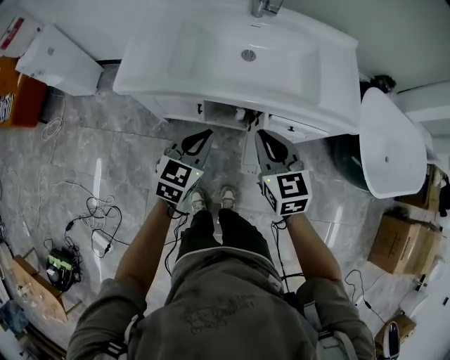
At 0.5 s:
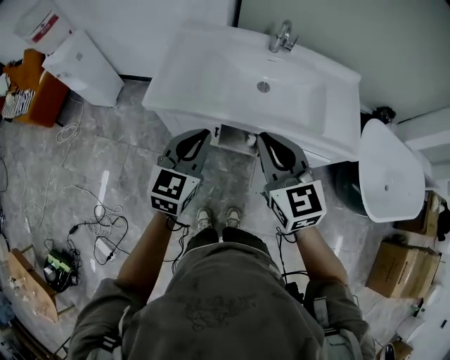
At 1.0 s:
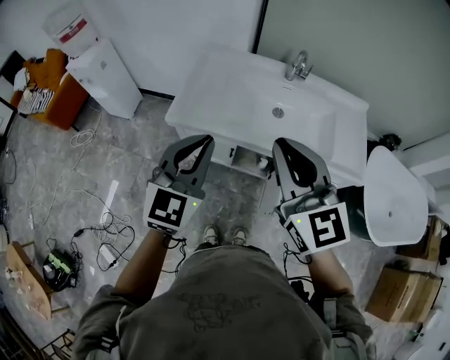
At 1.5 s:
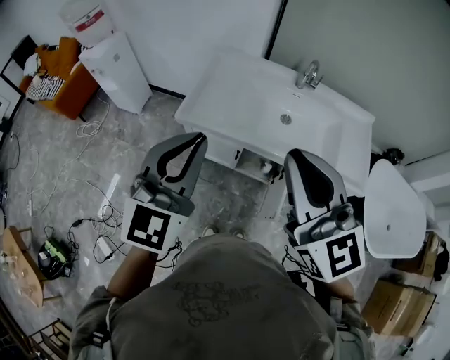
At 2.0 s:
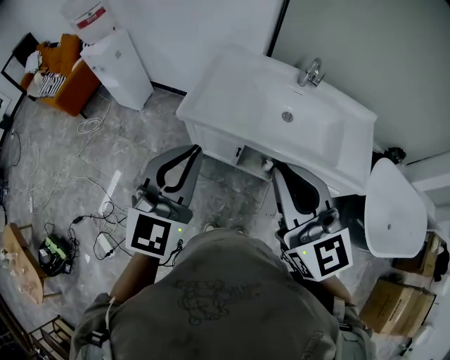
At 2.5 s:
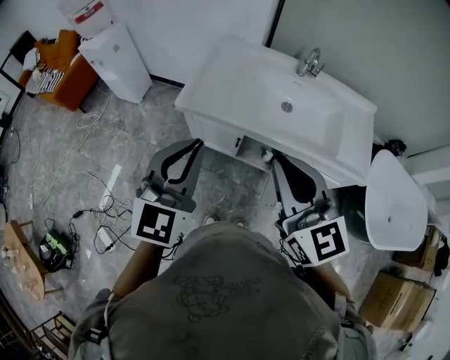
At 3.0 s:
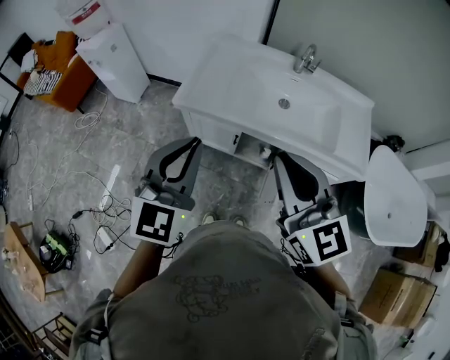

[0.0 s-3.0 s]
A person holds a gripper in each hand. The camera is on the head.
0.0 to 1.5 s: The right gripper travels upward by roughly 30 cm, and swivels roughly 40 degrees. The left gripper shifts some 35 cm upward and to the left, and turns by about 30 degrees.
1.5 to 3.0 s: Both grippers travel together downward, about 5 cm.

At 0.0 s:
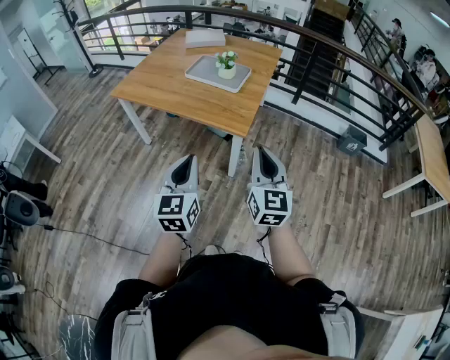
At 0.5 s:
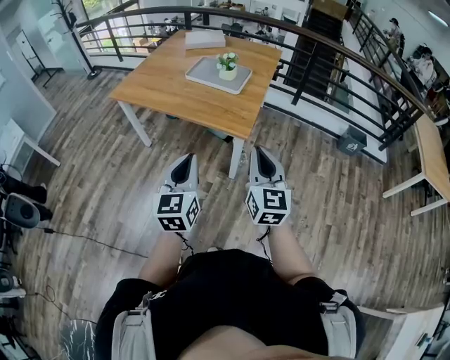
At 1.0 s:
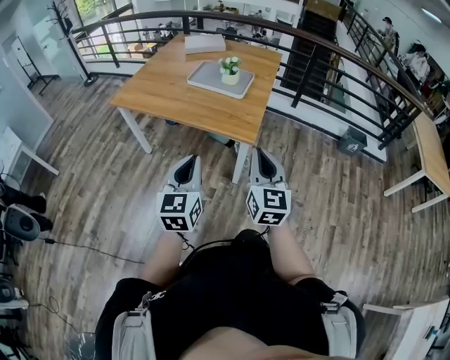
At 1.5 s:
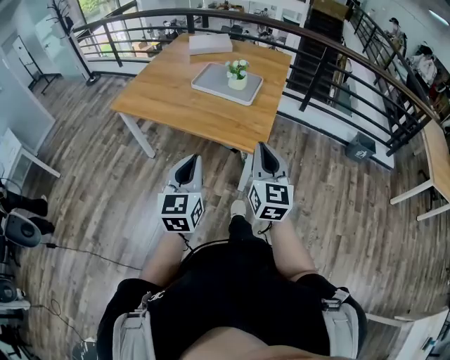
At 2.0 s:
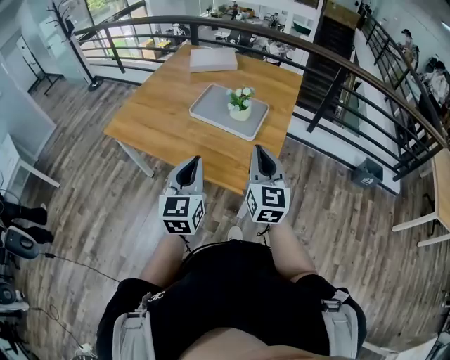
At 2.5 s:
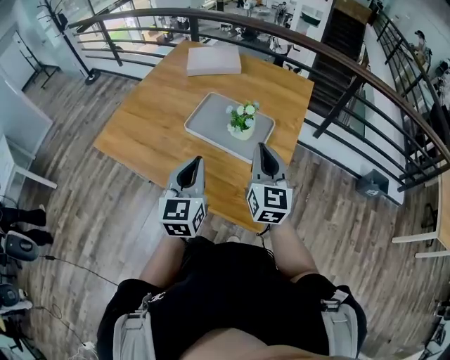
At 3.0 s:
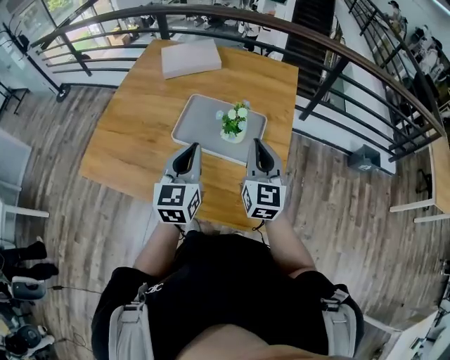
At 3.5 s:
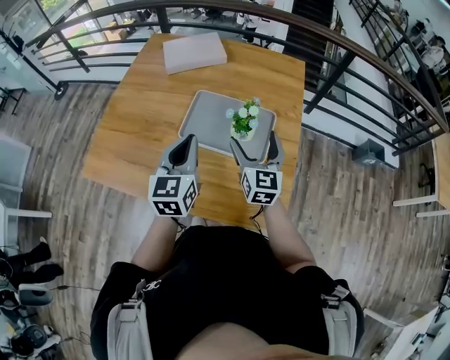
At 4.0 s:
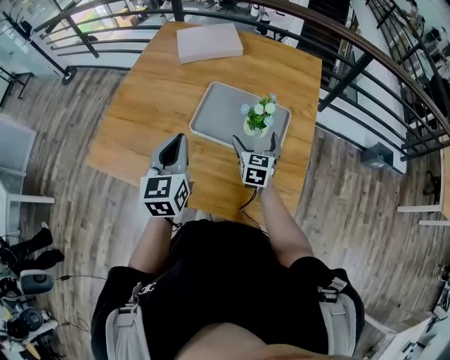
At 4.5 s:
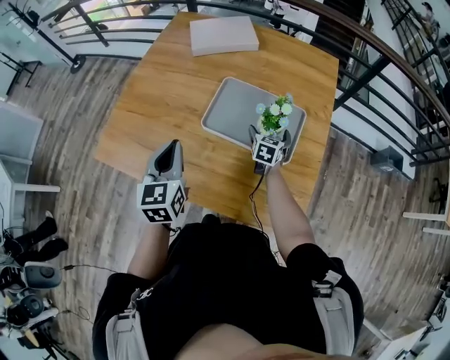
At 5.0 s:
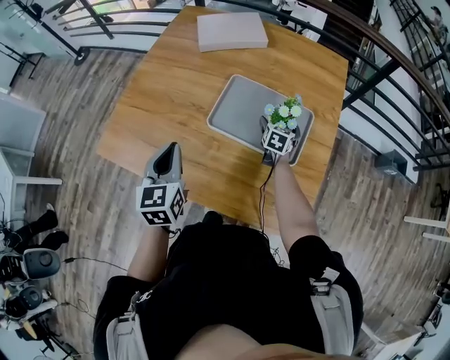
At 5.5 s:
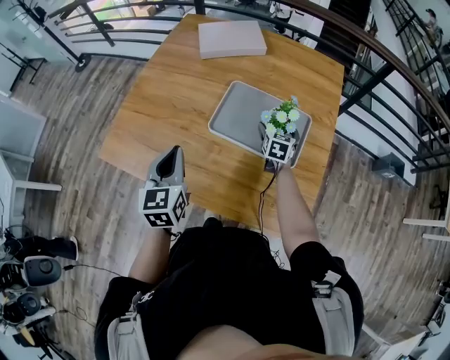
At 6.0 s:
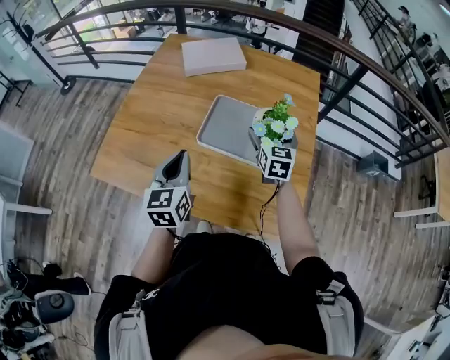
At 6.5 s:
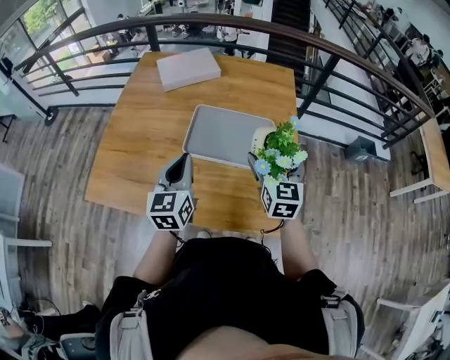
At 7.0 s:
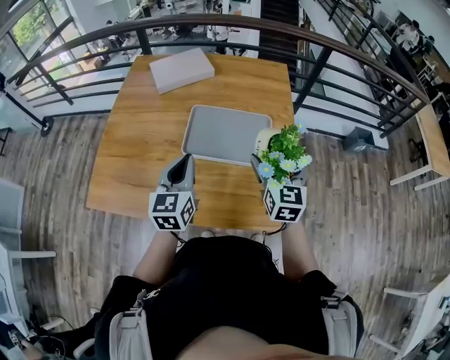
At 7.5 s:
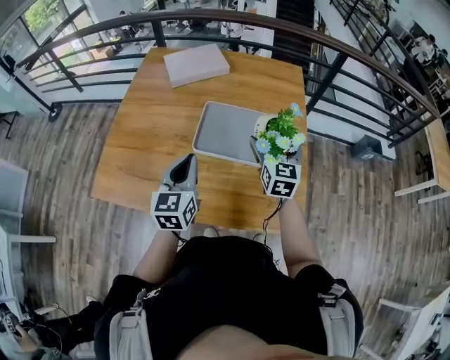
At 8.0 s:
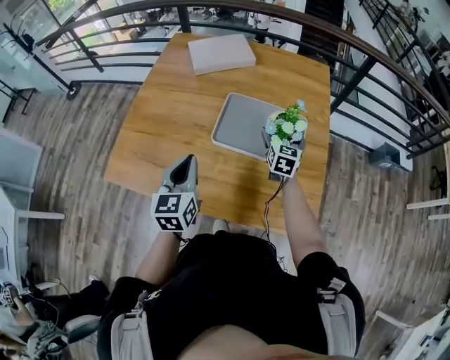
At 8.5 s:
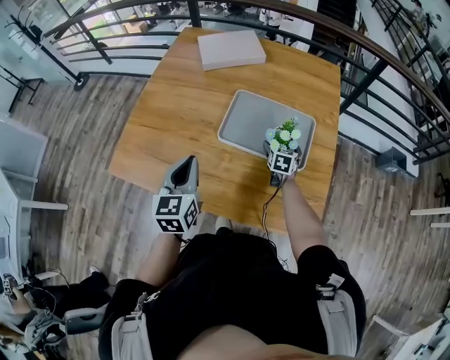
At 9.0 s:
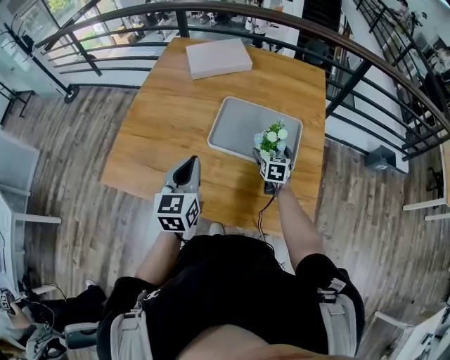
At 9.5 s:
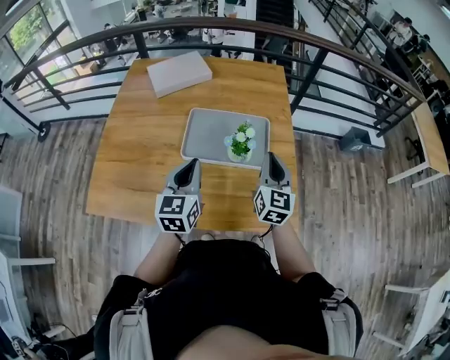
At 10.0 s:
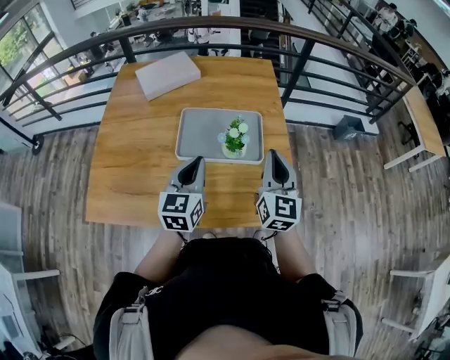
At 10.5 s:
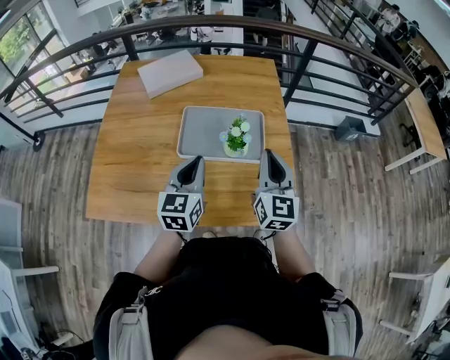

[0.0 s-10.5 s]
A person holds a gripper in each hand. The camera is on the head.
0.0 to 2.0 s: The two grippers go about 35 cm forward.
2.0 to 4.0 s: The right gripper is displaced forward and downward by approximately 40 cm, changes its angle by approximately 30 degrees, and opens. The left gripper is displaced forward and to the left by some 35 cm.
4.0 to 6.5 s: The left gripper travels to the left and back again, some 5 cm each way. The right gripper is displaced upward and backward by approximately 20 cm.
6.5 to 8.5 s: The right gripper travels downward and forward by approximately 30 cm, and swivels approximately 30 degrees; the left gripper travels to the left by about 10 cm.
8.5 to 10.5 s: The left gripper goes about 10 cm to the right, and changes its angle by some 20 degrees. Meanwhile the right gripper heads upward and backward, covering roughly 35 cm, angles its fingers upward, by some 40 degrees, and closes up.

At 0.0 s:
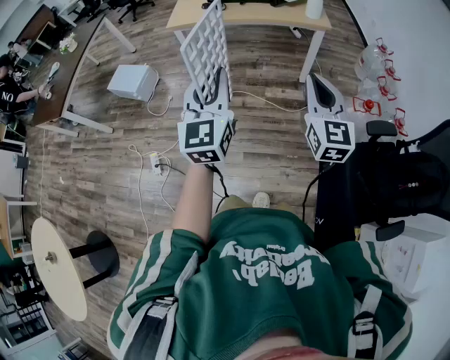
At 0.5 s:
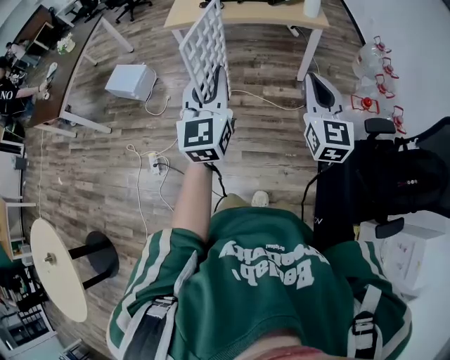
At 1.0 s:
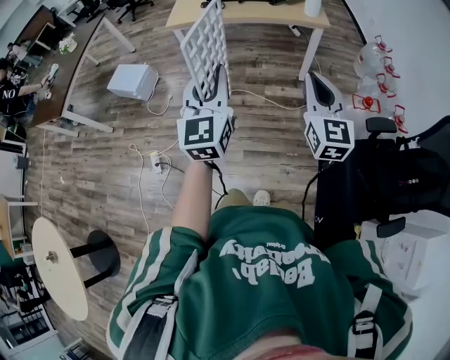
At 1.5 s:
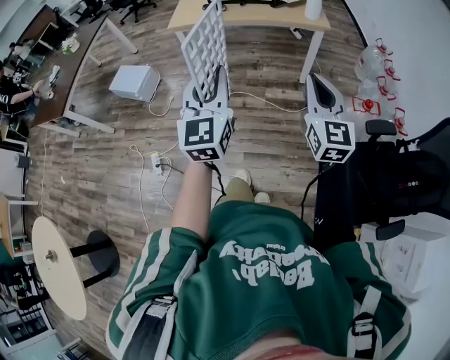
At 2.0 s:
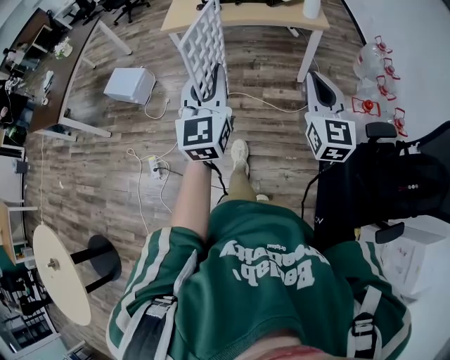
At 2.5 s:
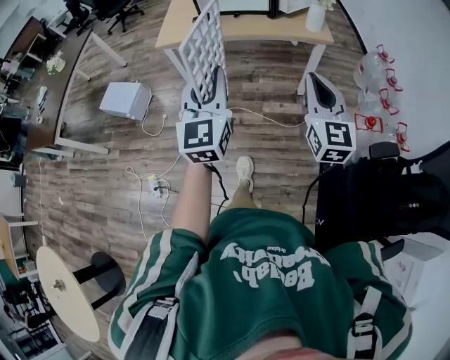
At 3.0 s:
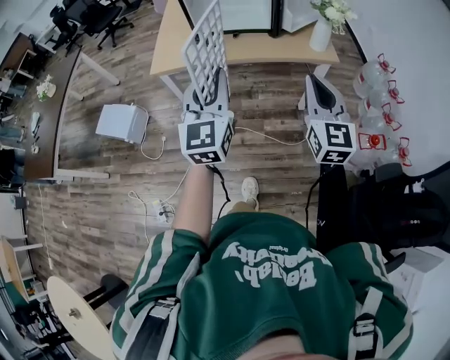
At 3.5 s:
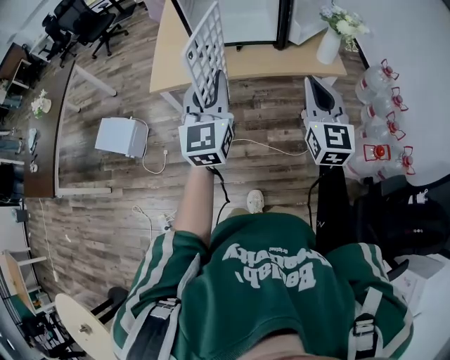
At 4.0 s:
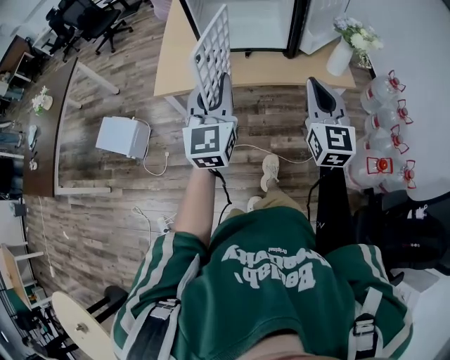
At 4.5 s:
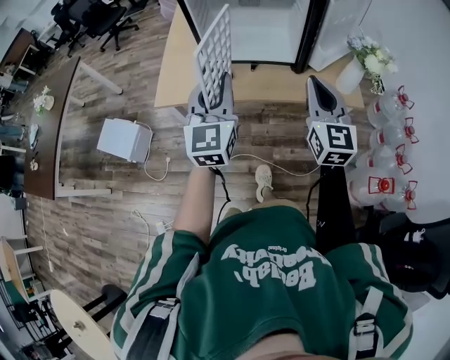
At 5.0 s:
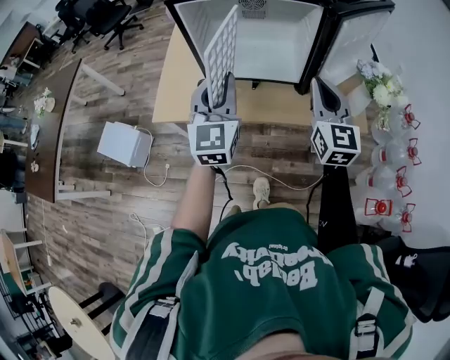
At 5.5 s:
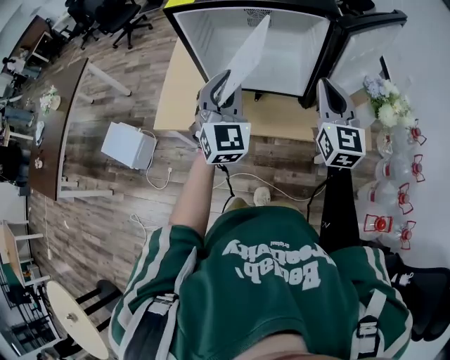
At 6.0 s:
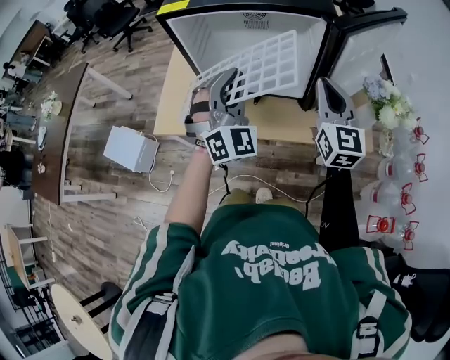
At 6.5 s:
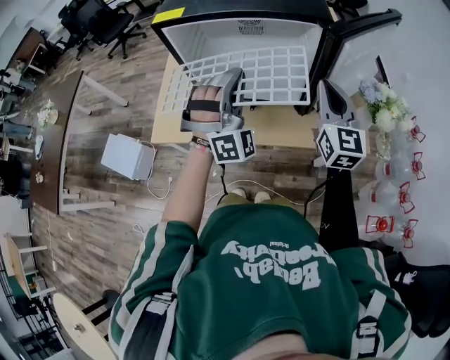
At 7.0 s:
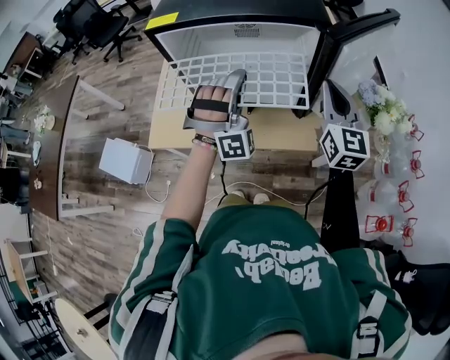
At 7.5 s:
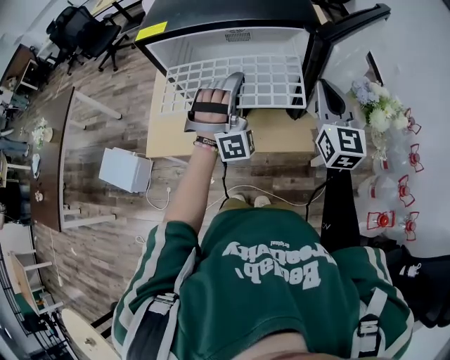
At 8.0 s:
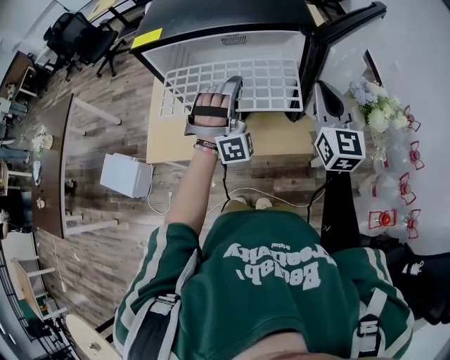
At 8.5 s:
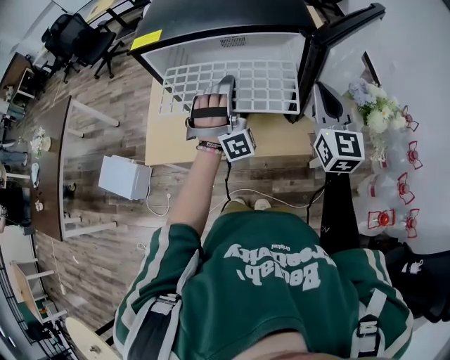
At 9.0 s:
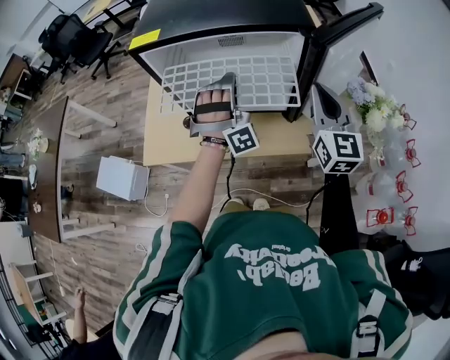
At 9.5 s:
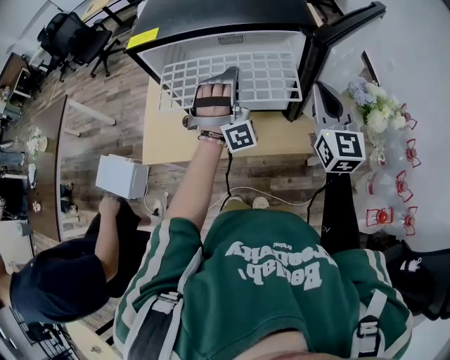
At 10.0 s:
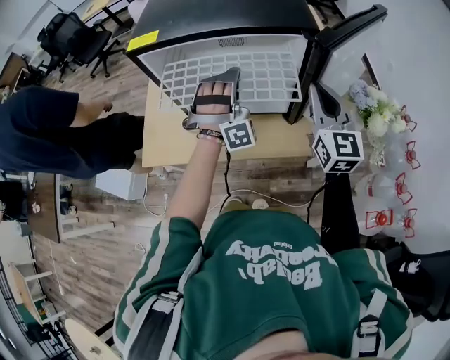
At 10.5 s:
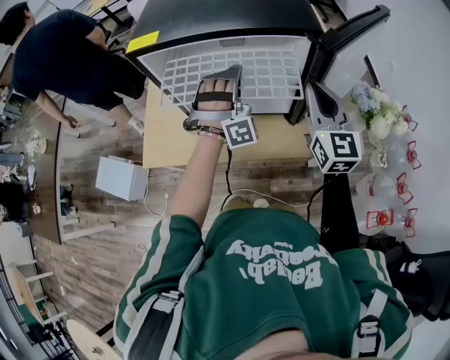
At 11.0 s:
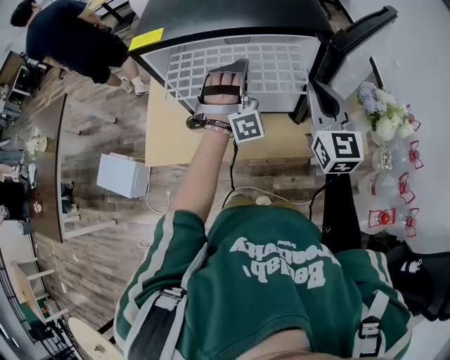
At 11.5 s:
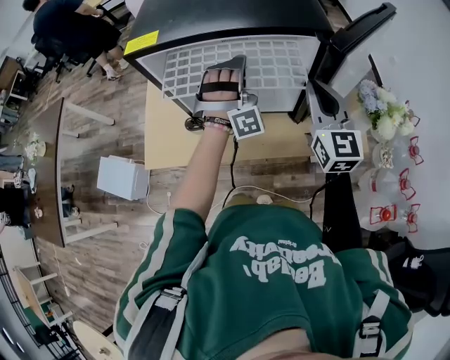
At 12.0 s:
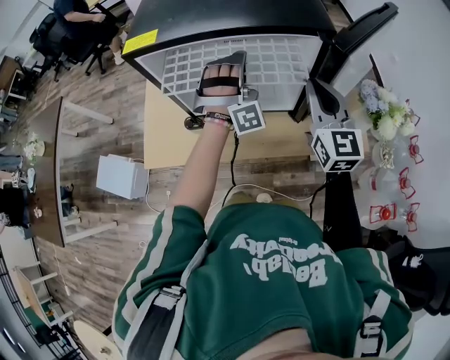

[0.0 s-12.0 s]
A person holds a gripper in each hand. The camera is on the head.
0.0 to 2.0 s: There are only small adjustments of the grippers.
2.0 to 4.0 s: The pair of grippers is taken forward, about 40 cm.
4.0 to 6.0 s: Both grippers move forward, roughly 25 cm. The left gripper rolls clockwise, seen from behind, by about 50 degrees.
6.0 to 8.0 s: The right gripper ends up approximately 5 cm from where it was. Meanwhile the left gripper goes roughly 10 cm forward and to the right, and swivels approximately 30 degrees.
8.0 to 10.0 s: The grippers stay close to where they were, moving slightly.
10.0 to 12.0 s: The left gripper is displaced forward by roughly 5 cm.

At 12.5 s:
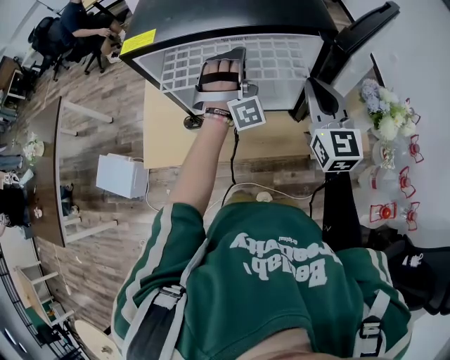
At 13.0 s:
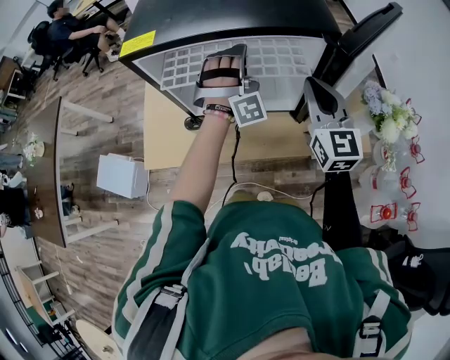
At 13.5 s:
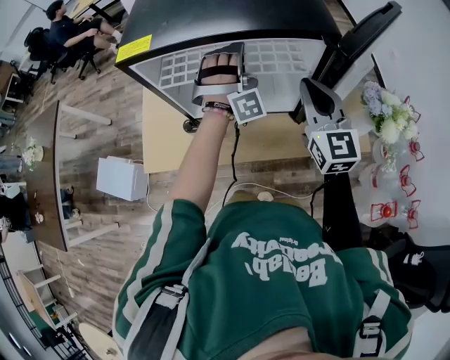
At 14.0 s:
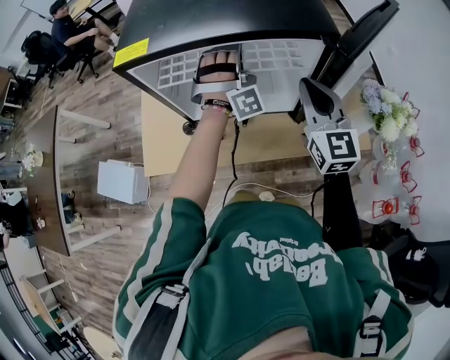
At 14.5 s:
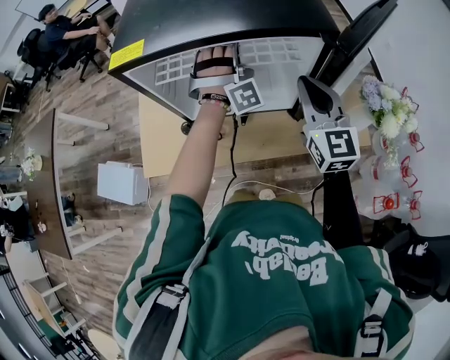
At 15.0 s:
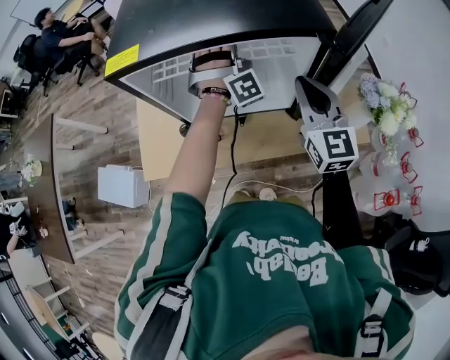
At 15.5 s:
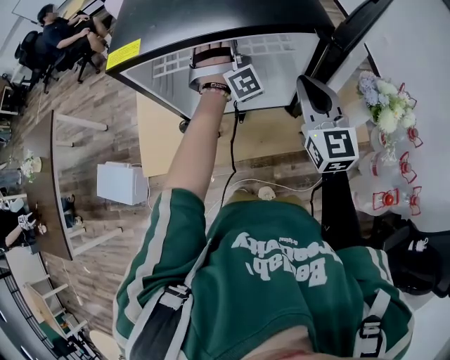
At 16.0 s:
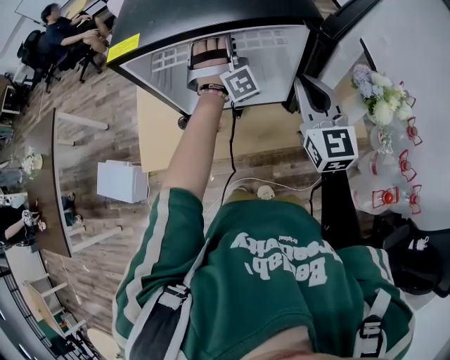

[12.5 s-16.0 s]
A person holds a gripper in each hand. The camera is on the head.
12.5 to 14.5 s: The left gripper shifts approximately 5 cm forward.
14.5 to 16.0 s: The left gripper opens up.
